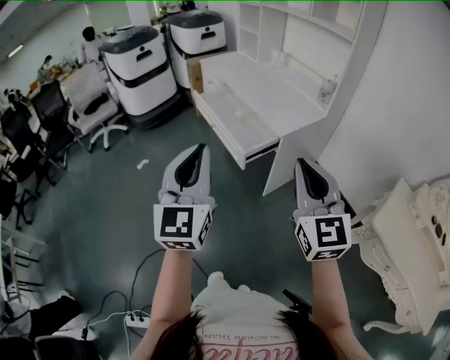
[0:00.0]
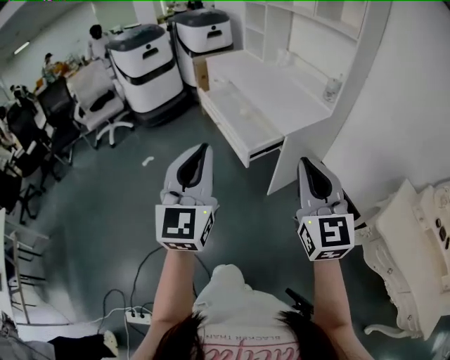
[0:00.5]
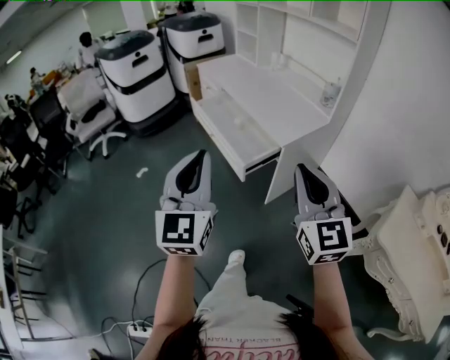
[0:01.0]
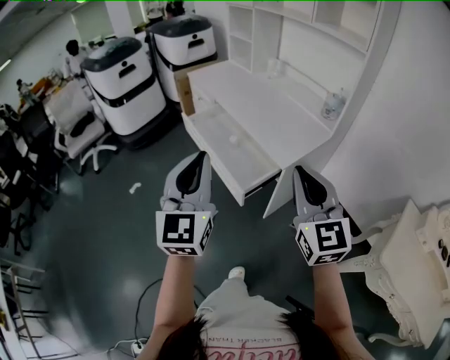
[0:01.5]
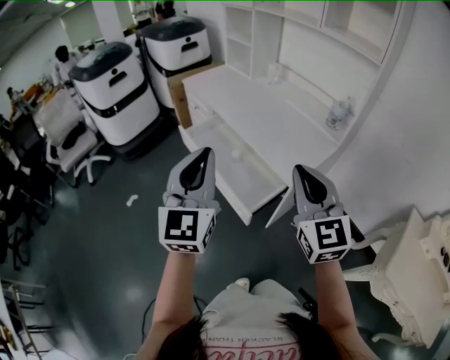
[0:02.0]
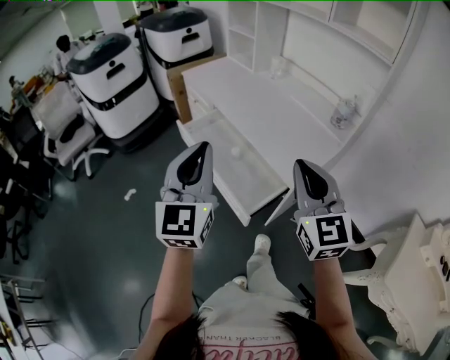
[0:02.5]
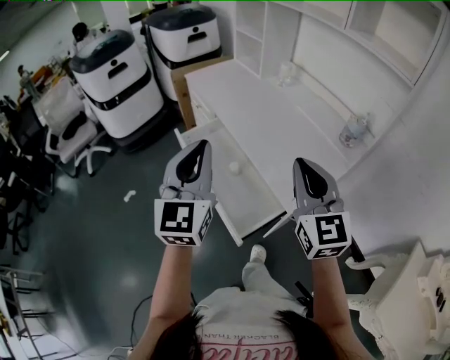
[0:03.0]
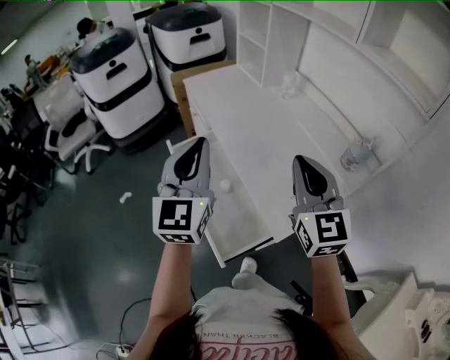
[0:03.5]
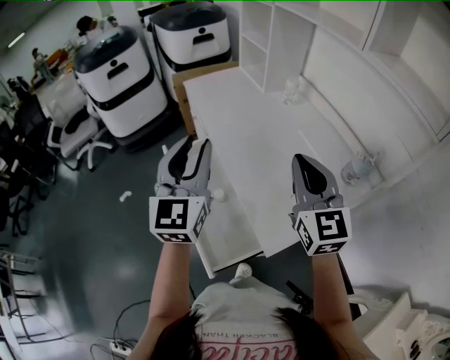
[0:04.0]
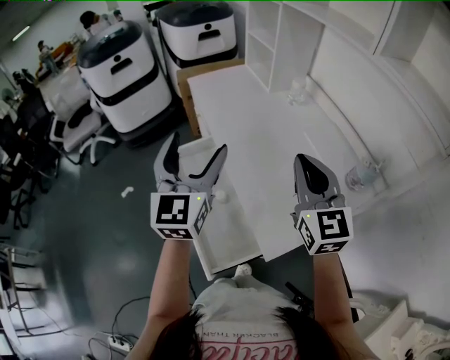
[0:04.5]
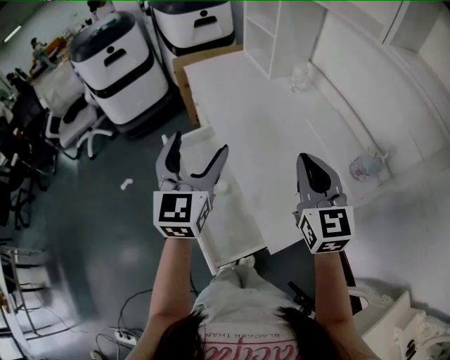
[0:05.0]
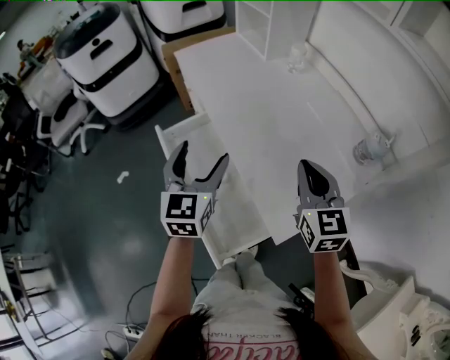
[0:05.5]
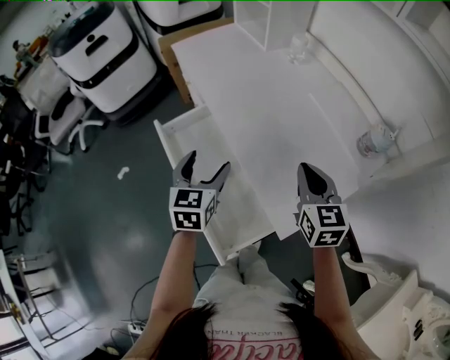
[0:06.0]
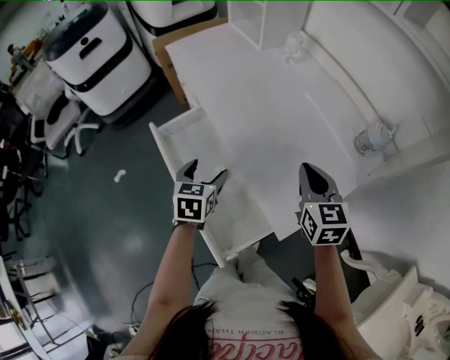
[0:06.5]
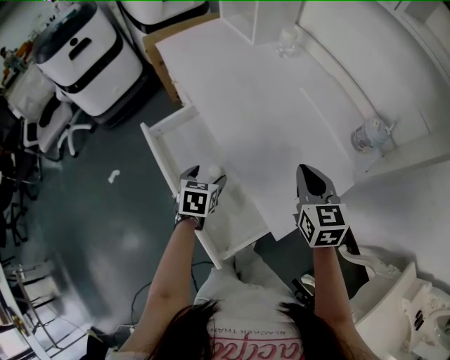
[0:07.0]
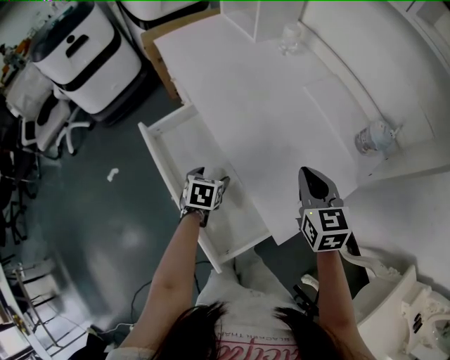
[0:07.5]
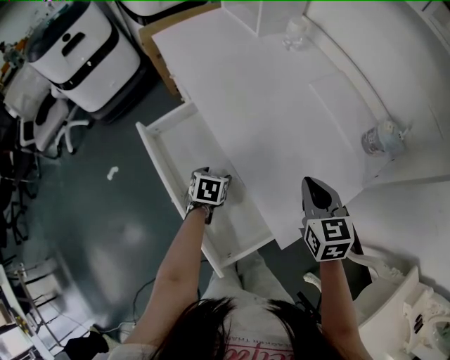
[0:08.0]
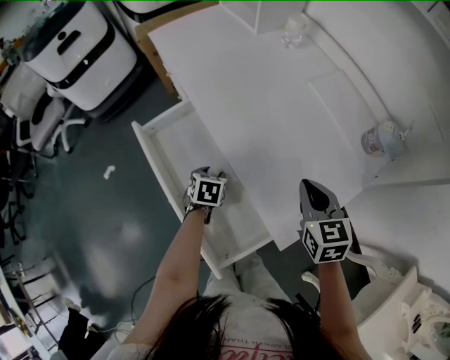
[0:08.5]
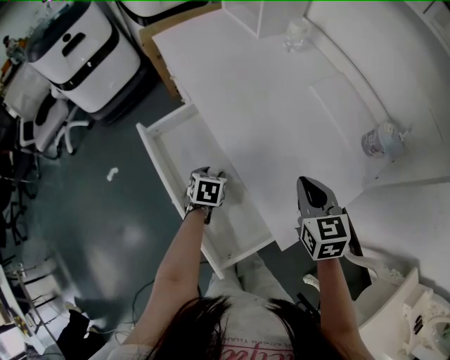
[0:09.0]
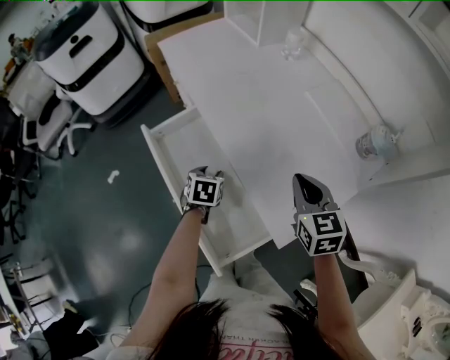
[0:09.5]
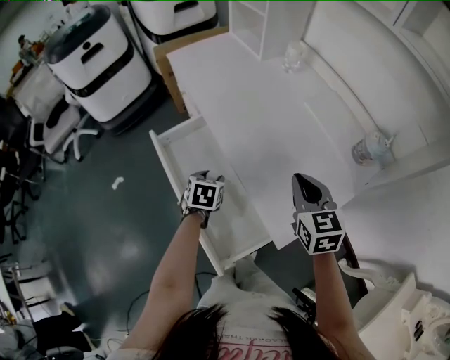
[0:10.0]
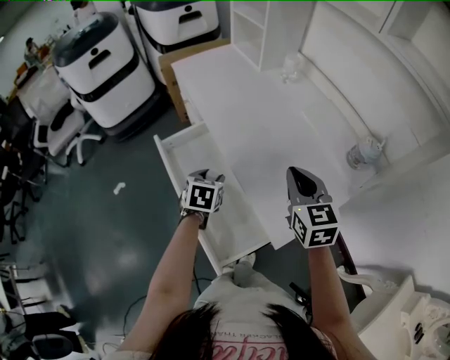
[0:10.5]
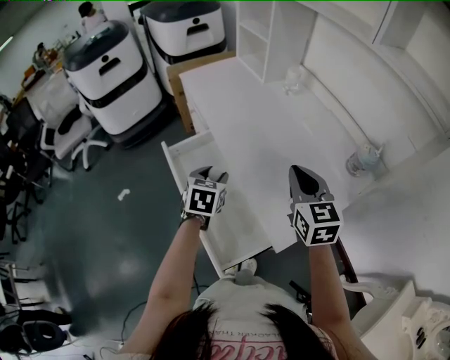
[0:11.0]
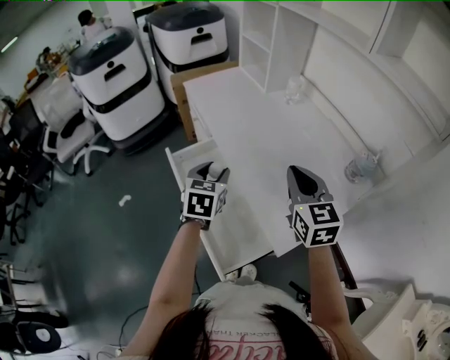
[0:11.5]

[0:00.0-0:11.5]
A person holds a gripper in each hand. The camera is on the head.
0:00.0 to 0:02.0: Both grippers travel together forward, about 30 cm.
0:02.0 to 0:04.0: The two grippers go approximately 30 cm forward.
0:04.0 to 0:06.0: Both grippers travel together downward, roughly 20 cm. The right gripper rotates some 30 degrees. The left gripper angles its fingers downward, by roughly 30 degrees, and opens.
0:06.0 to 0:07.5: The left gripper is displaced downward by approximately 20 cm, and angles its fingers downward, by roughly 30 degrees.
0:07.5 to 0:09.5: The left gripper closes.
0:09.5 to 0:11.5: The right gripper is displaced upward by roughly 15 cm; the left gripper shifts roughly 25 cm upward, and turns by roughly 30 degrees.

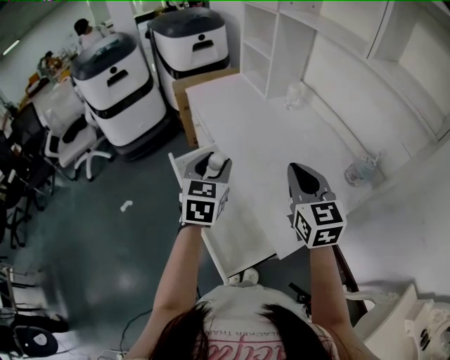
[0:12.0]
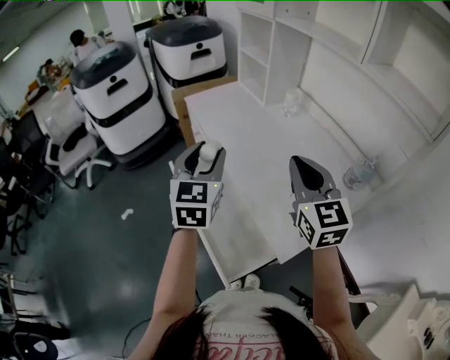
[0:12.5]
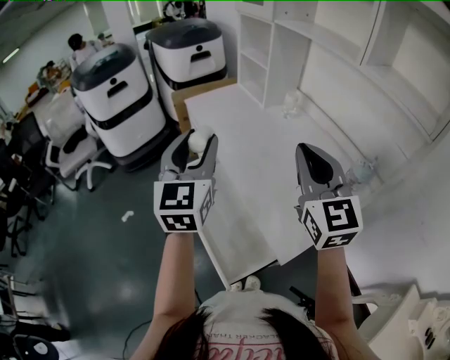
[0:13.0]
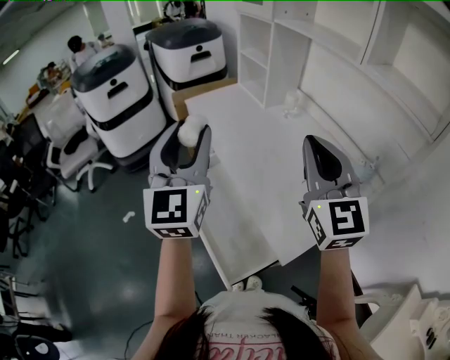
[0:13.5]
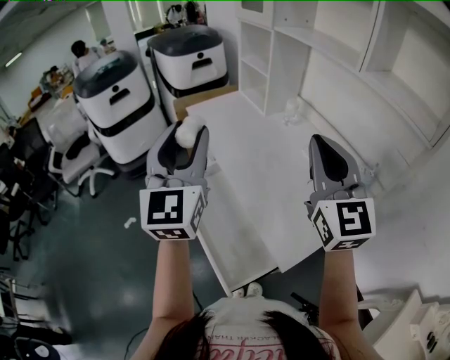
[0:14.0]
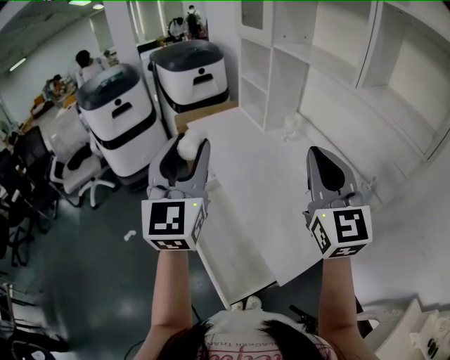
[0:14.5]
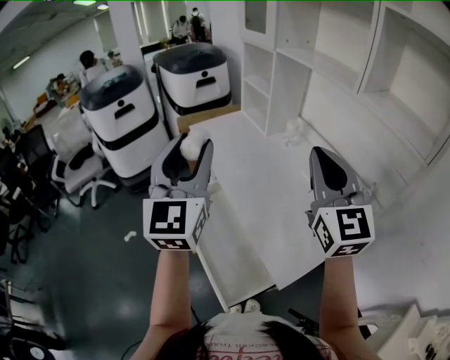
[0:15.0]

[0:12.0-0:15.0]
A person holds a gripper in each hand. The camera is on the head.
0:12.0 to 0:13.5: The two grippers go approximately 15 cm upward. The right gripper changes its angle by roughly 20 degrees, while the left gripper tilts its fingers some 30 degrees upward.
0:13.5 to 0:15.0: The grippers stay close to where they were, moving slightly.

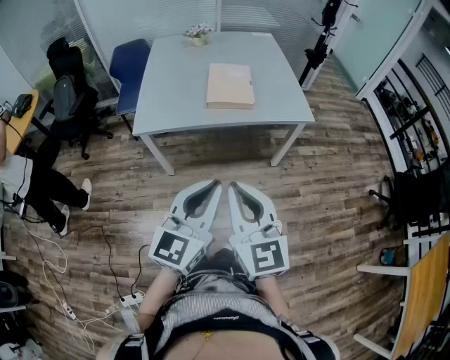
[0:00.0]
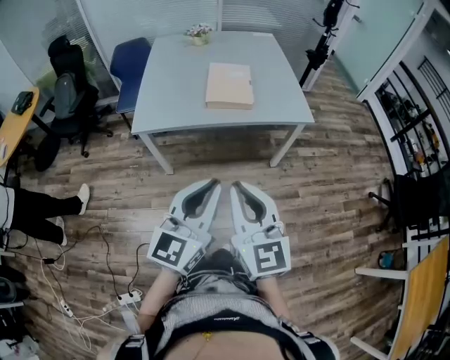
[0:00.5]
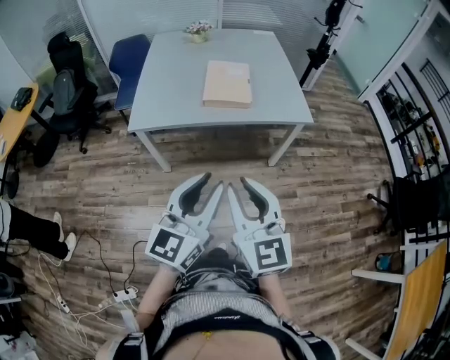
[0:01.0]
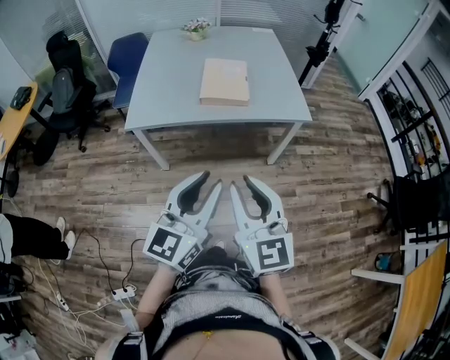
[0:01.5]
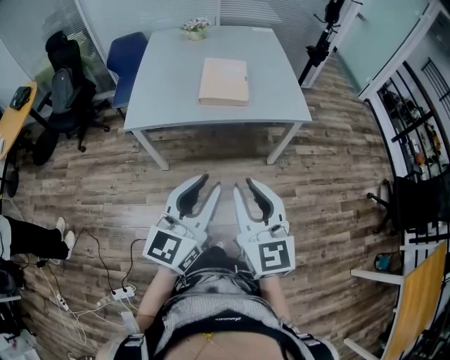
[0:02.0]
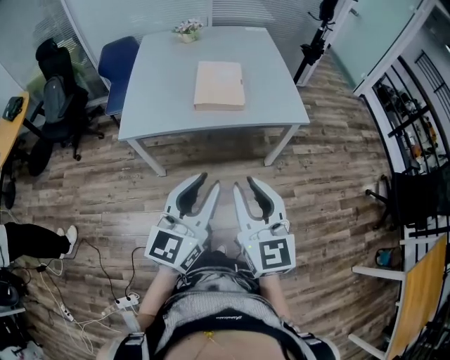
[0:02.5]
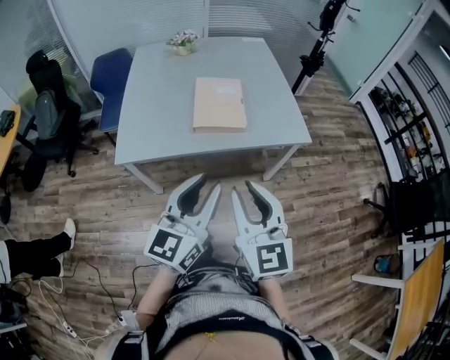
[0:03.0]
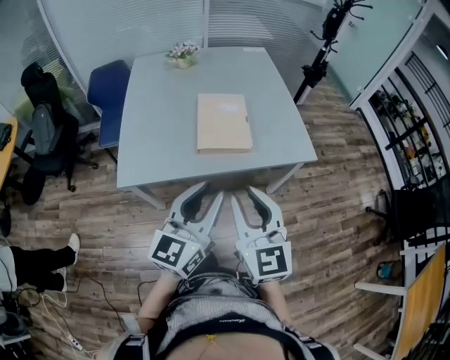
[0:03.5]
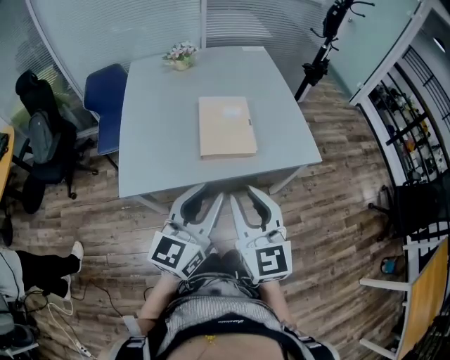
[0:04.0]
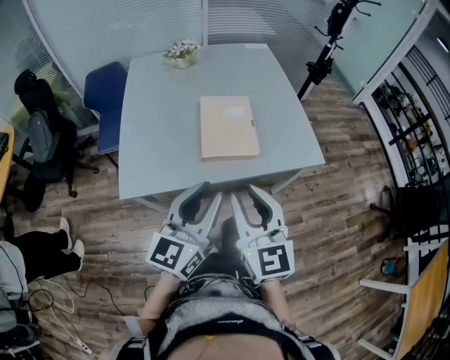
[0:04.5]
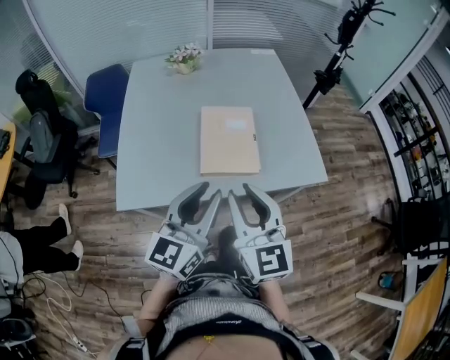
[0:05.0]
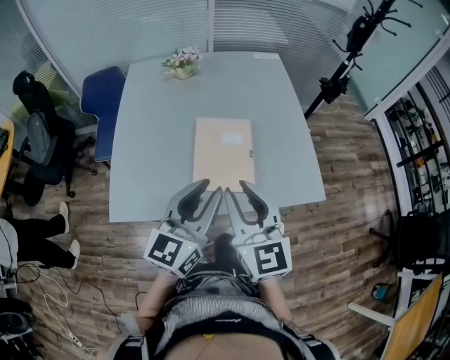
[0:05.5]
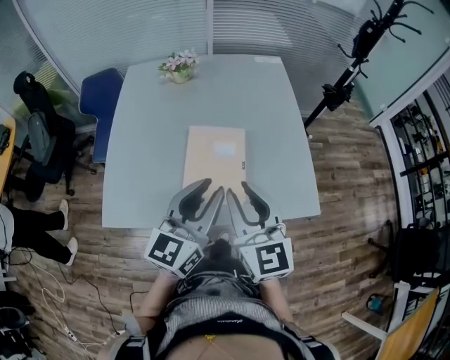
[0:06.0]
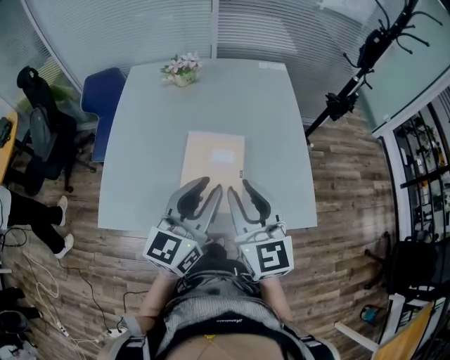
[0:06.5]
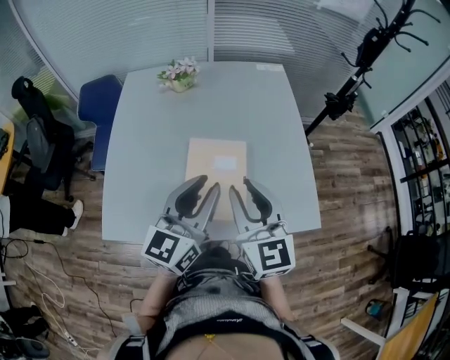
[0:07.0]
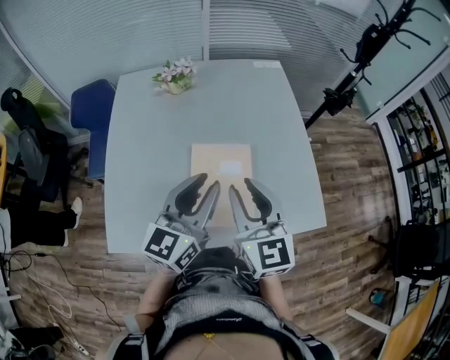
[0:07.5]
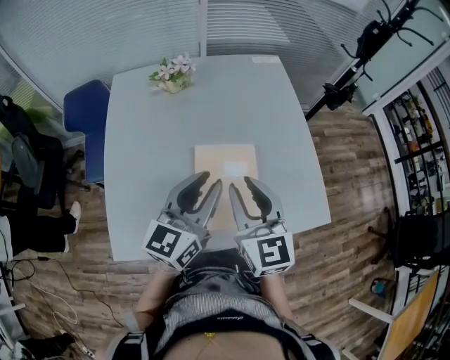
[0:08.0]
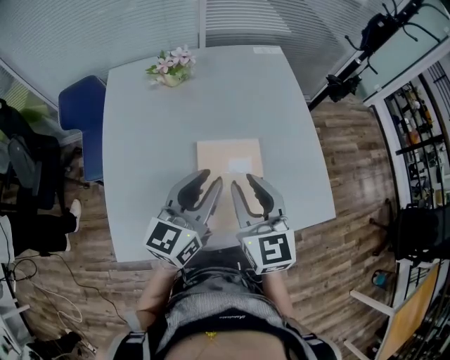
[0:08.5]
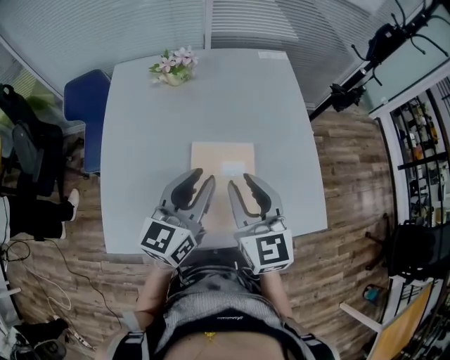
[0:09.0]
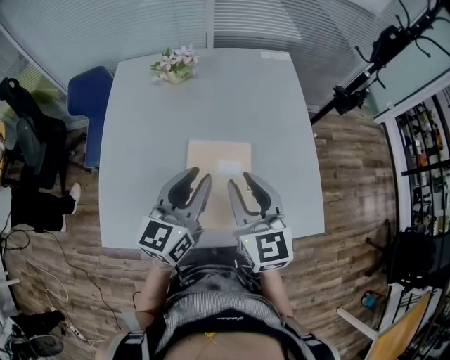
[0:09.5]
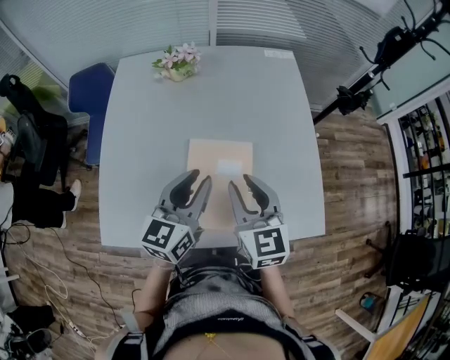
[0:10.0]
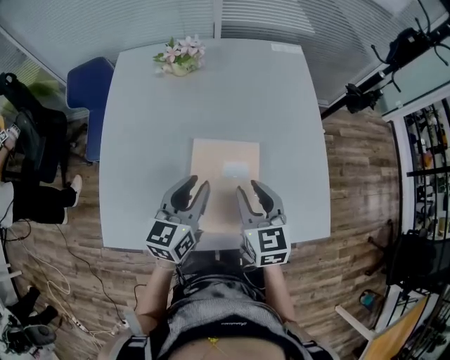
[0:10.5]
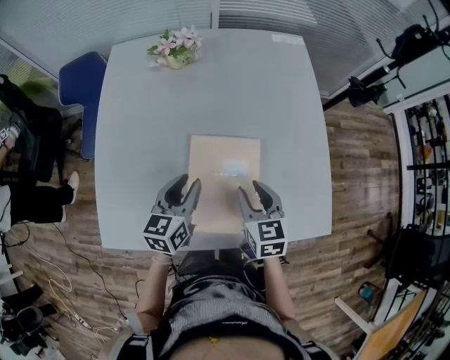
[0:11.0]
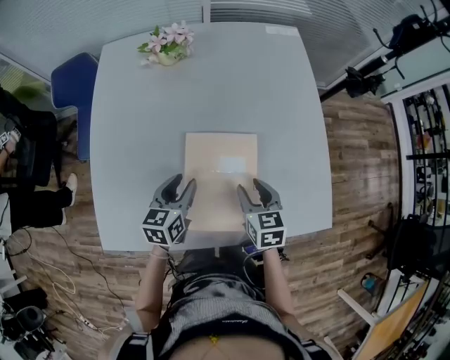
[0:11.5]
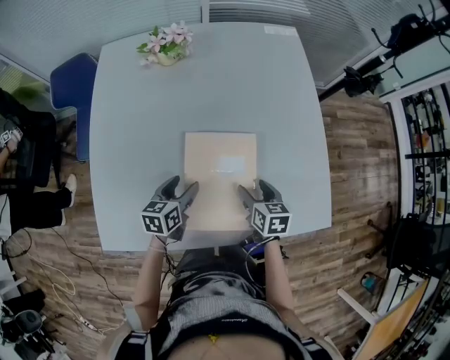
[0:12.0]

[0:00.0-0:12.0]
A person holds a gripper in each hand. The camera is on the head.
0:00.0 to 0:02.0: The right gripper goes approximately 5 cm to the right.
0:02.0 to 0:04.0: The left gripper moves forward, roughly 25 cm. Meanwhile the right gripper moves forward and to the left, roughly 30 cm.
0:04.0 to 0:06.0: Both grippers travel together forward, approximately 25 cm.
0:06.0 to 0:08.0: Both grippers move forward and to the left, roughly 15 cm.
0:08.0 to 0:10.0: The two grippers go approximately 5 cm downward.
0:10.0 to 0:12.0: The two grippers go some 25 cm downward. The right gripper rotates about 40 degrees, and opens up, while the left gripper turns by approximately 30 degrees, and opens its fingers.
